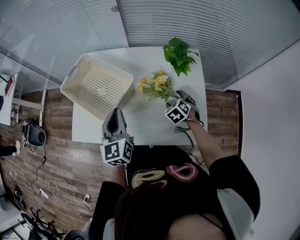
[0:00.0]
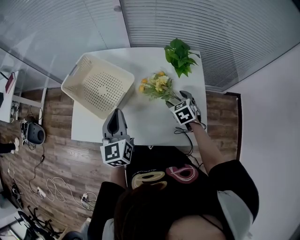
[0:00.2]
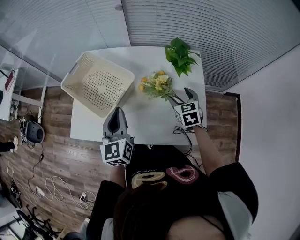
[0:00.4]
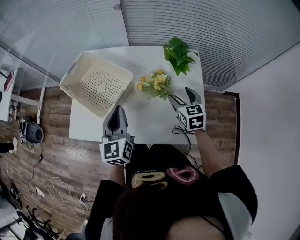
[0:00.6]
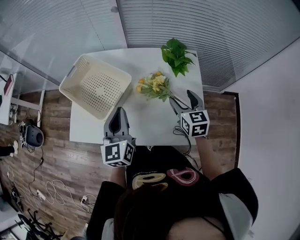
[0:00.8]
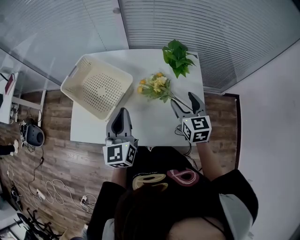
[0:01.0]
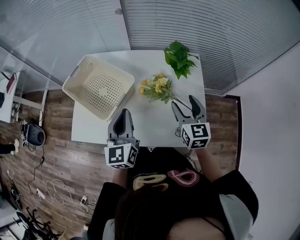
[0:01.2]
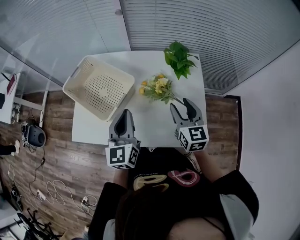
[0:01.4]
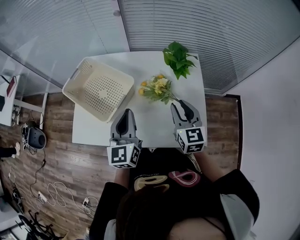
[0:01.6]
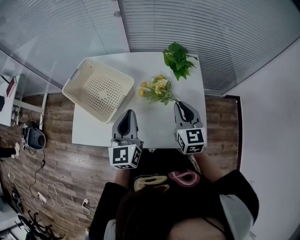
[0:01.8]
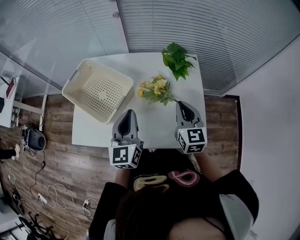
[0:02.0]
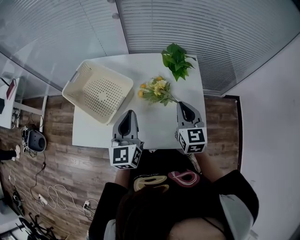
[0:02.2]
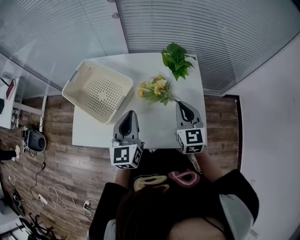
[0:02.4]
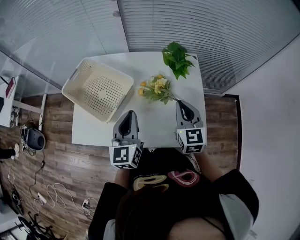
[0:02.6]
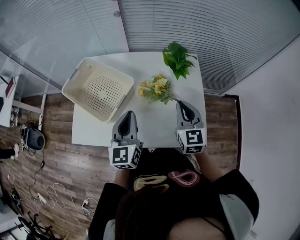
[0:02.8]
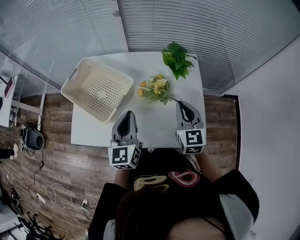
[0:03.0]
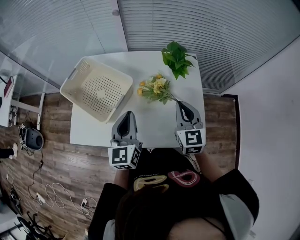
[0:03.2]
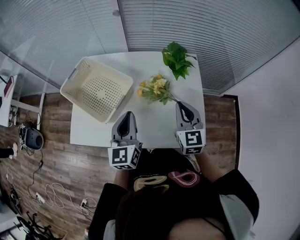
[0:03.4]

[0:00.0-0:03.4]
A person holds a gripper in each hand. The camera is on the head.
0:00.0 to 0:01.6: The left gripper ends up approximately 5 cm from where it was; the right gripper is displaced upward by some 15 cm, tilts its fingers about 40 degrees upward, and closes up.
0:01.6 to 0:03.4: The right gripper closes up.

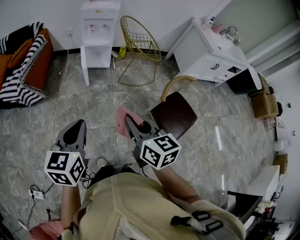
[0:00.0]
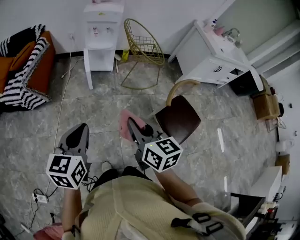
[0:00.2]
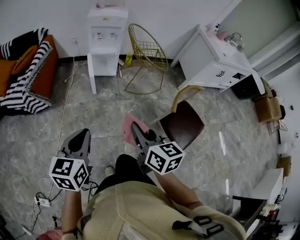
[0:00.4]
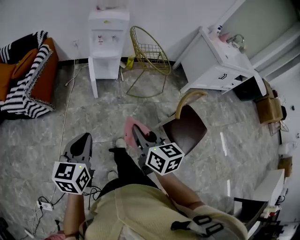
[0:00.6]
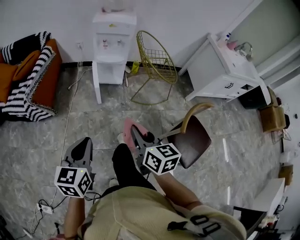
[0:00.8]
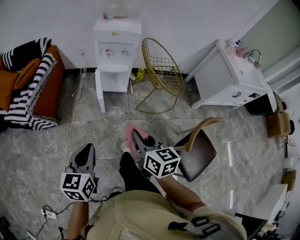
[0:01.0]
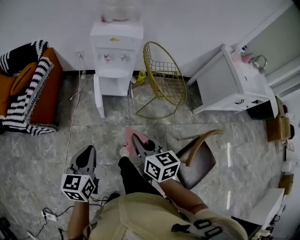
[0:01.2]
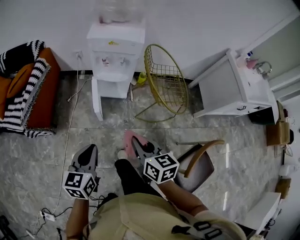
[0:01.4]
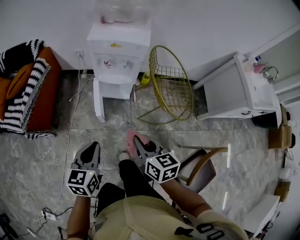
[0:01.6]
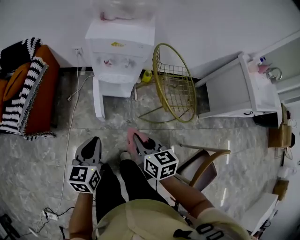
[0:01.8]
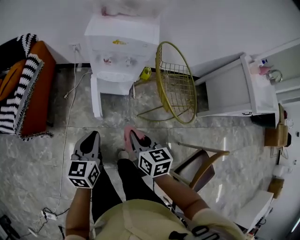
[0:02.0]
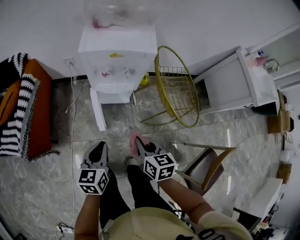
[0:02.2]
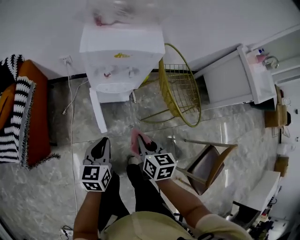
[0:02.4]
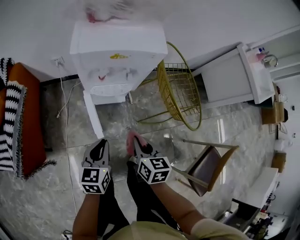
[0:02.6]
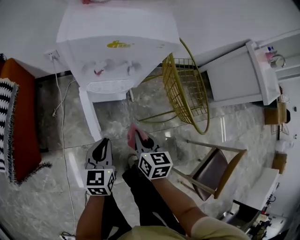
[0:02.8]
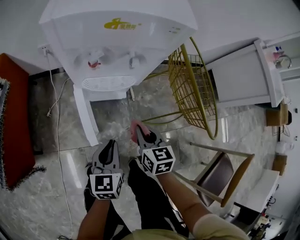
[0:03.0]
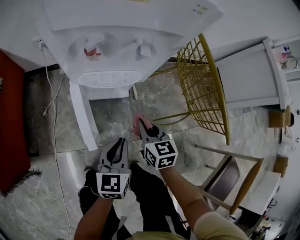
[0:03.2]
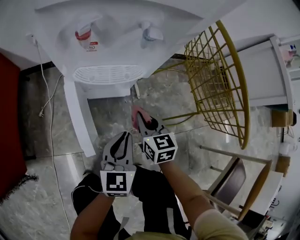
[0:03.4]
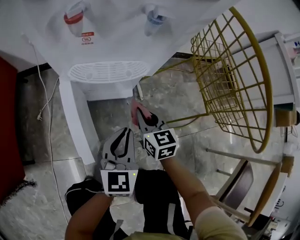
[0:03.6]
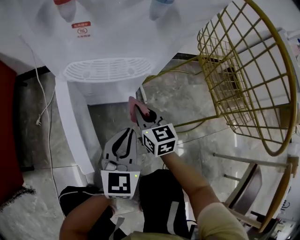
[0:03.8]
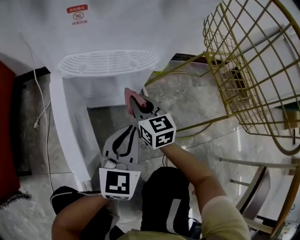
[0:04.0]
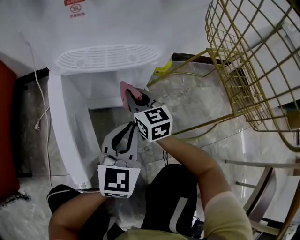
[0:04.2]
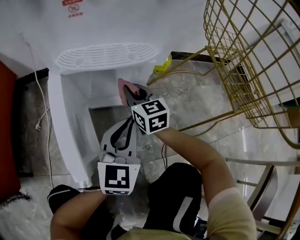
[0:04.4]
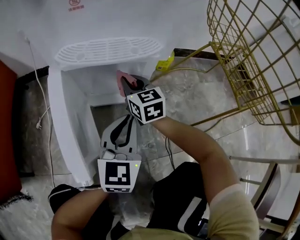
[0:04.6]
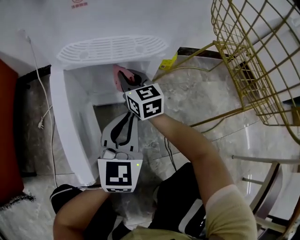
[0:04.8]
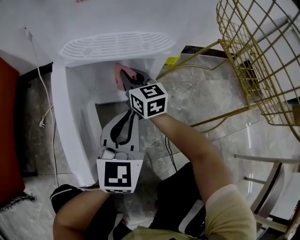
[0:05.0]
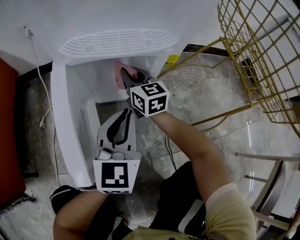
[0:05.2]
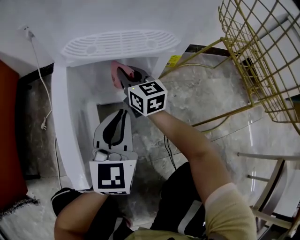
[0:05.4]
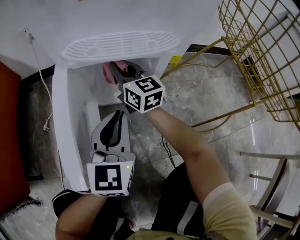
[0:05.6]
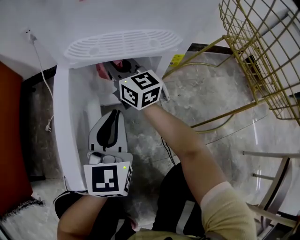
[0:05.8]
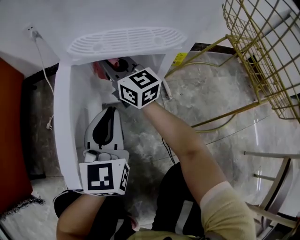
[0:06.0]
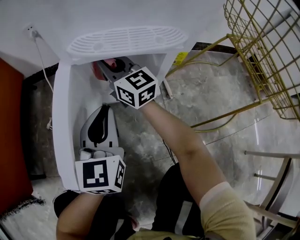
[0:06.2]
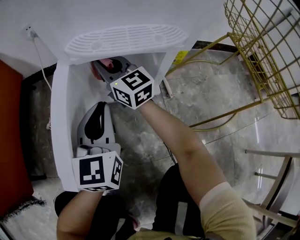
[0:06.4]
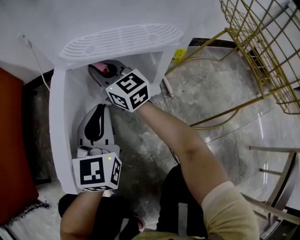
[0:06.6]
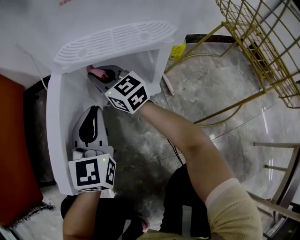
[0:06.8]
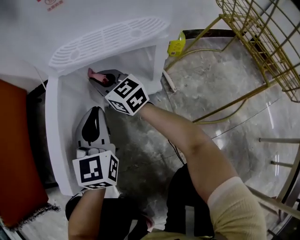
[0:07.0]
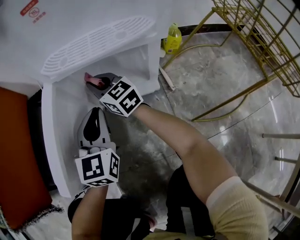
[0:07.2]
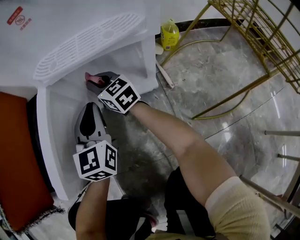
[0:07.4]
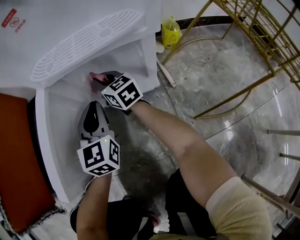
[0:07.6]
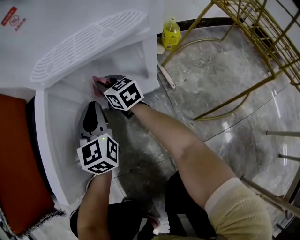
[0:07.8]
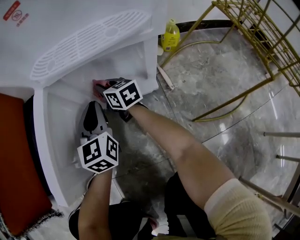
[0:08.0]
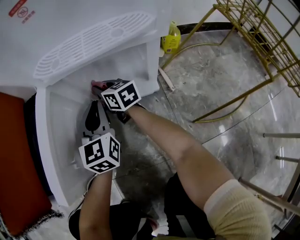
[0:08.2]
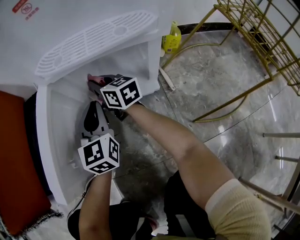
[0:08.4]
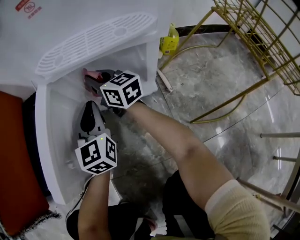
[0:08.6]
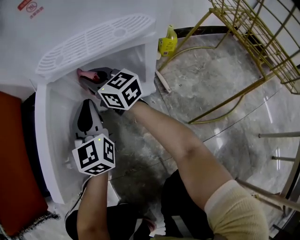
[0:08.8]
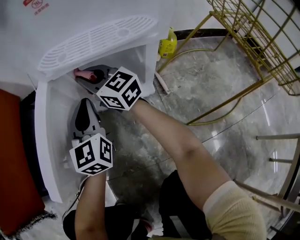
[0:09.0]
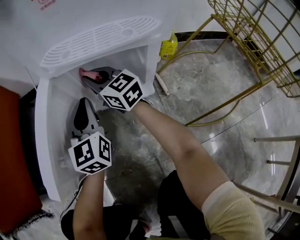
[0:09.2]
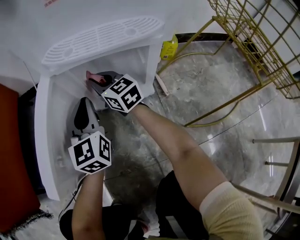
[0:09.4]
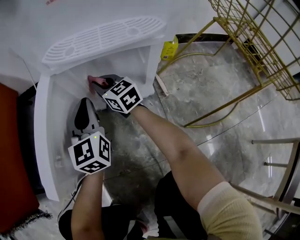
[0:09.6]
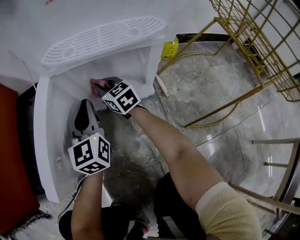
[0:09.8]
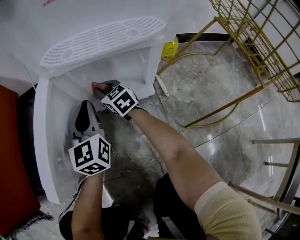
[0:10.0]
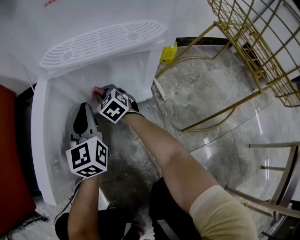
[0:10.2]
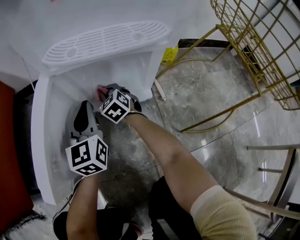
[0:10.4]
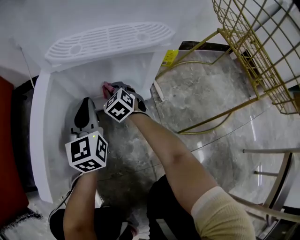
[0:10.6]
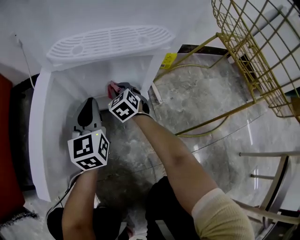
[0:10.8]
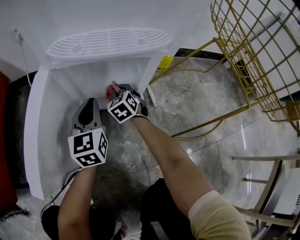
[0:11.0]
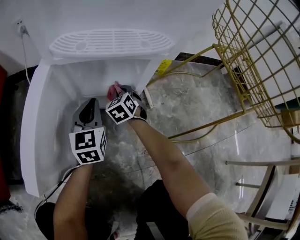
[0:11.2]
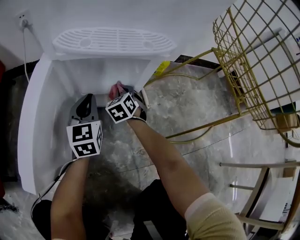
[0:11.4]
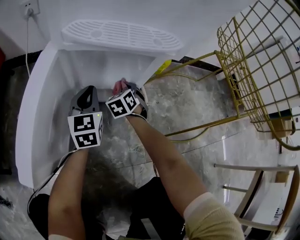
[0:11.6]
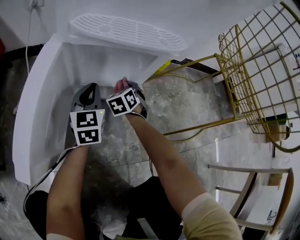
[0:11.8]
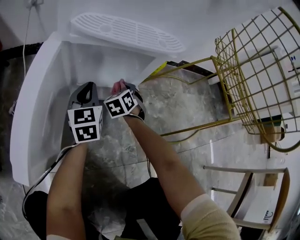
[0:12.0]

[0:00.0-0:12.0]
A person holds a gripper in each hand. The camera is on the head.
0:00.0 to 0:01.6: Both grippers travel together forward, some 40 cm.
0:01.6 to 0:03.0: The grippers both shift downward and forward by some 35 cm.
0:03.0 to 0:04.4: Both grippers travel together downward and forward, about 25 cm. The left gripper changes its angle by some 20 degrees; the right gripper turns by roughly 20 degrees.
0:04.4 to 0:06.0: The left gripper moves to the left, some 10 cm; the right gripper moves to the left, forward and upward, approximately 15 cm, and swivels approximately 30 degrees.
0:06.0 to 0:07.6: The left gripper goes about 10 cm downward and forward. Meanwhile the right gripper moves downward, approximately 10 cm.
0:07.6 to 0:09.0: The right gripper goes approximately 10 cm upward.
0:09.0 to 0:10.4: The right gripper shifts approximately 20 cm downward, and angles its fingers downward, by about 40 degrees.
0:10.4 to 0:12.0: The left gripper is displaced downward by about 5 cm; the right gripper is displaced to the right by about 15 cm, and rotates about 30 degrees.

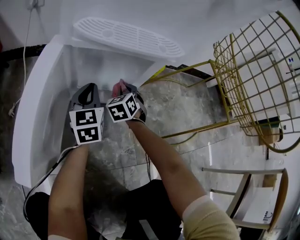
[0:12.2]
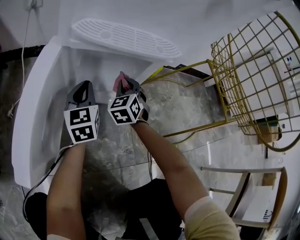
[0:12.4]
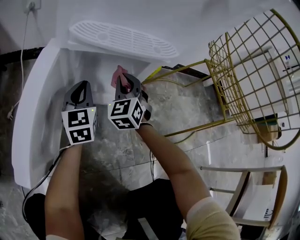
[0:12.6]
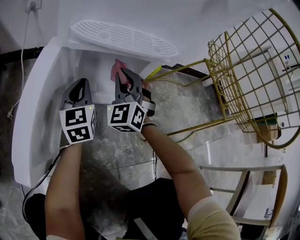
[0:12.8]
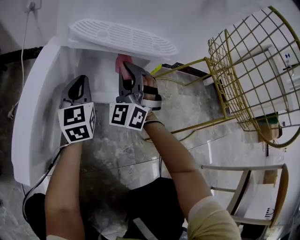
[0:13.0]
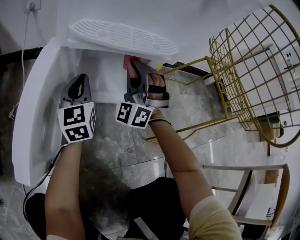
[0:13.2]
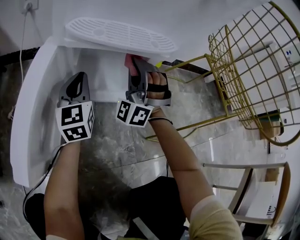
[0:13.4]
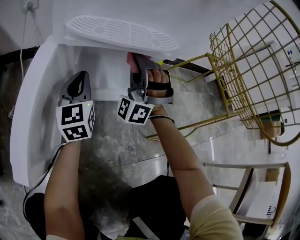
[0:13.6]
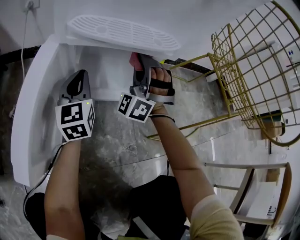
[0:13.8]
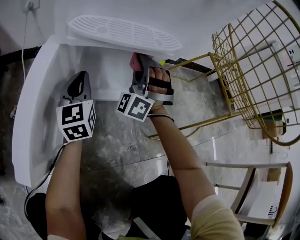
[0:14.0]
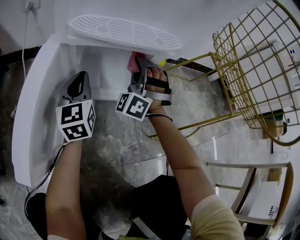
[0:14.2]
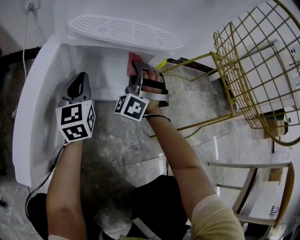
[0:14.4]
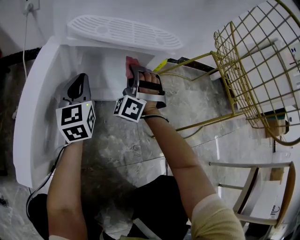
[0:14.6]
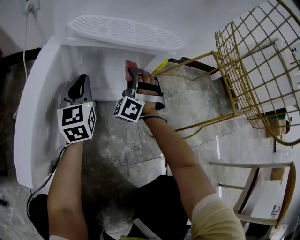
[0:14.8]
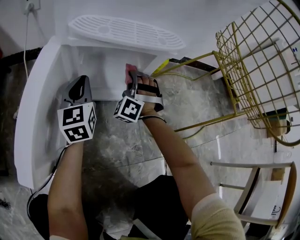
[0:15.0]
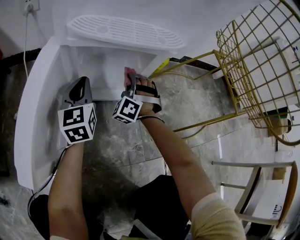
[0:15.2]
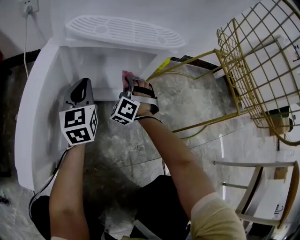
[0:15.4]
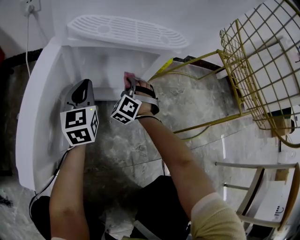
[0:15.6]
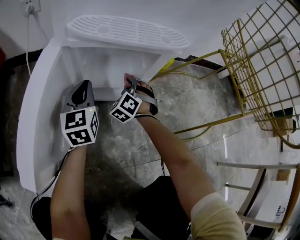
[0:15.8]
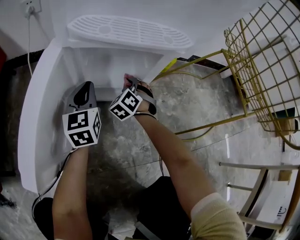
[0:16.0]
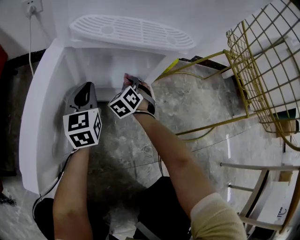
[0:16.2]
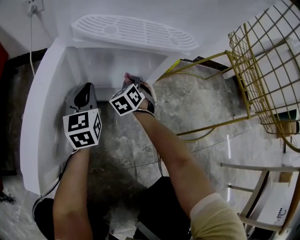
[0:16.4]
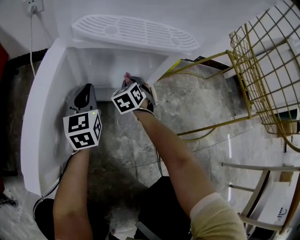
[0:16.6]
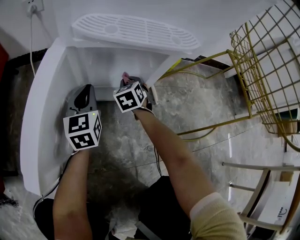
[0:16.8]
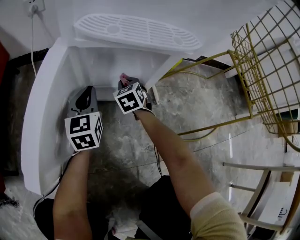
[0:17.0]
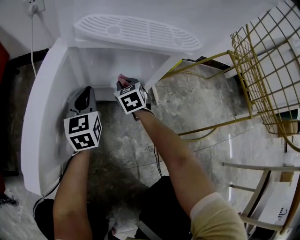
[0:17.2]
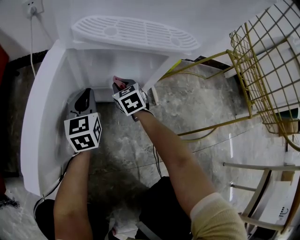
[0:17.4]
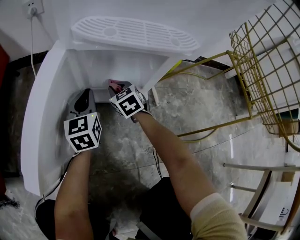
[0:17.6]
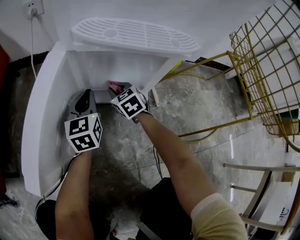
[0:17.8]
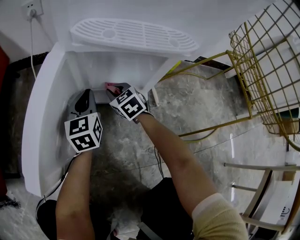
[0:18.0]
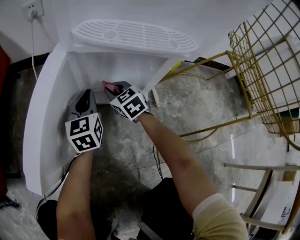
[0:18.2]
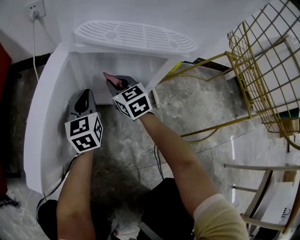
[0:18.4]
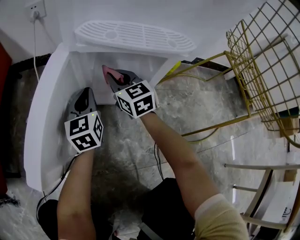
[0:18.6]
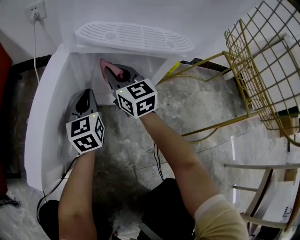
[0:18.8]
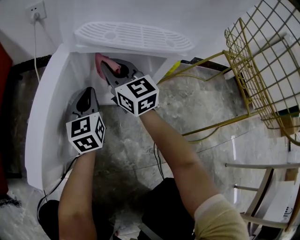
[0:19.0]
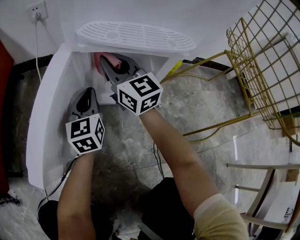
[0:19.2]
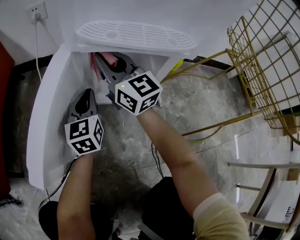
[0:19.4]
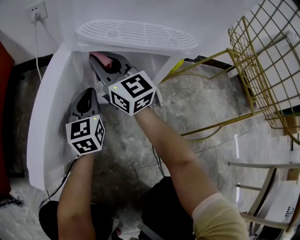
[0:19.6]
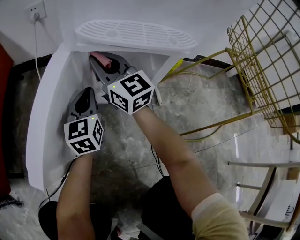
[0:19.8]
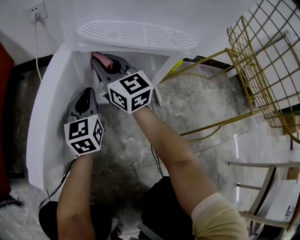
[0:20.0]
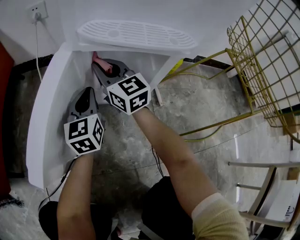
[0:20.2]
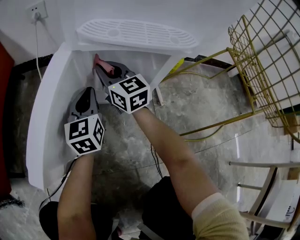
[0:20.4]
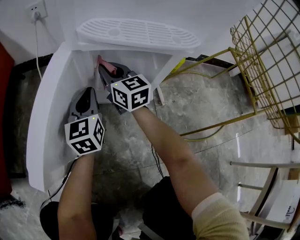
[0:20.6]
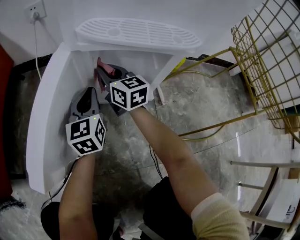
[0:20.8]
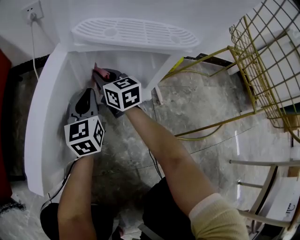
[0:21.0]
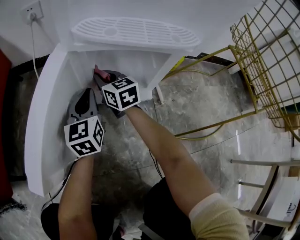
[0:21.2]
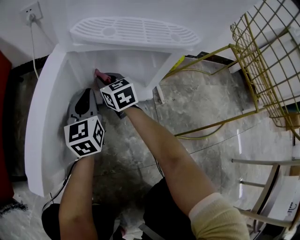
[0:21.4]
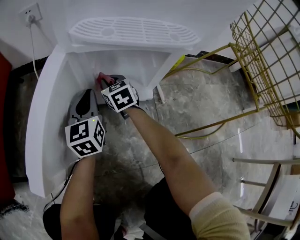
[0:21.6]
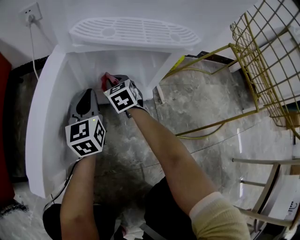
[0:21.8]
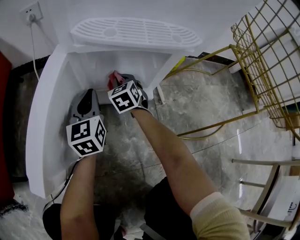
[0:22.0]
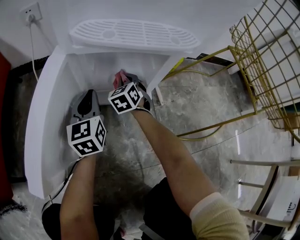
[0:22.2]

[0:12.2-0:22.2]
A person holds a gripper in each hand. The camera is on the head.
0:12.2 to 0:13.6: The left gripper shifts roughly 5 cm upward; the right gripper moves upward, some 20 cm, and points its fingers about 50 degrees further upward.
0:13.6 to 0:15.0: The right gripper goes roughly 15 cm downward, and rotates some 30 degrees.
0:15.0 to 0:16.4: The right gripper moves downward, some 10 cm, and turns by approximately 40 degrees.
0:16.4 to 0:18.0: The right gripper shifts approximately 10 cm to the left, and swivels roughly 40 degrees.
0:18.0 to 0:19.4: The right gripper goes approximately 25 cm upward, and angles its fingers upward, by about 50 degrees.
0:19.4 to 0:20.8: The right gripper moves downward, approximately 10 cm, and turns by about 20 degrees.
0:20.8 to 0:22.2: The right gripper heads downward and to the right, covering some 15 cm, and turns by some 50 degrees.
